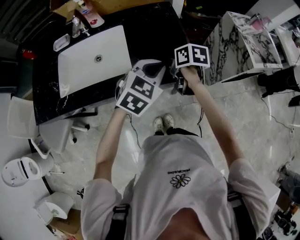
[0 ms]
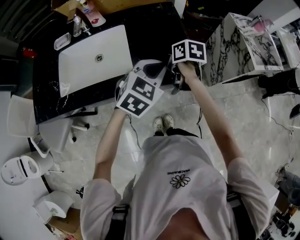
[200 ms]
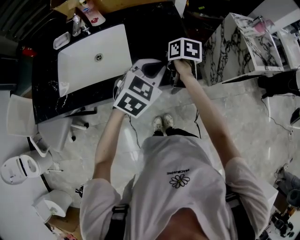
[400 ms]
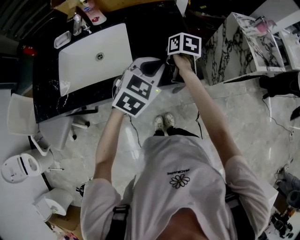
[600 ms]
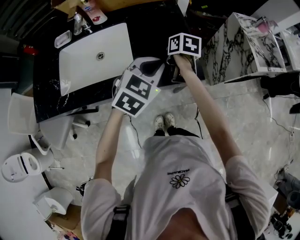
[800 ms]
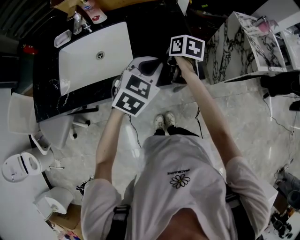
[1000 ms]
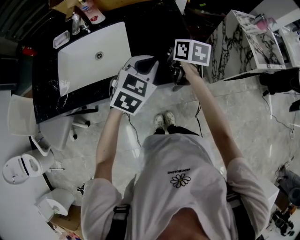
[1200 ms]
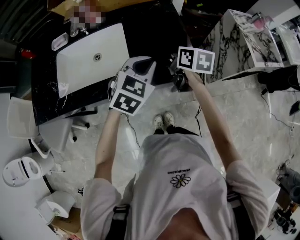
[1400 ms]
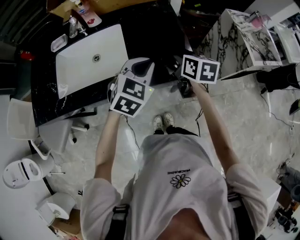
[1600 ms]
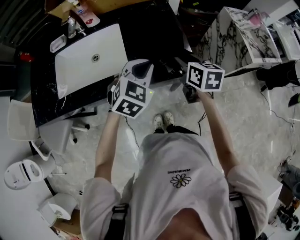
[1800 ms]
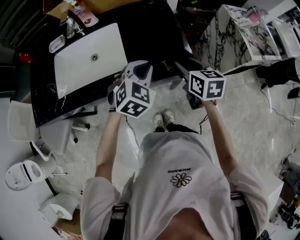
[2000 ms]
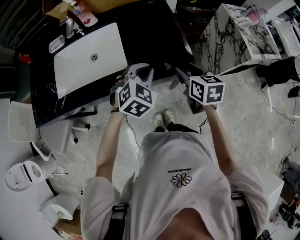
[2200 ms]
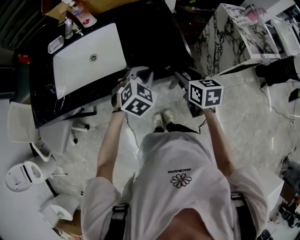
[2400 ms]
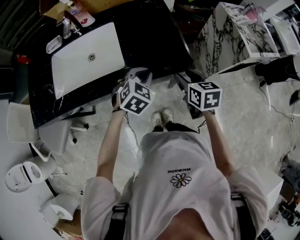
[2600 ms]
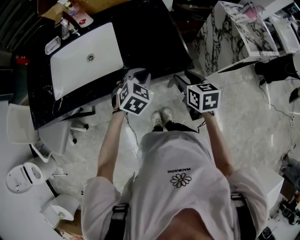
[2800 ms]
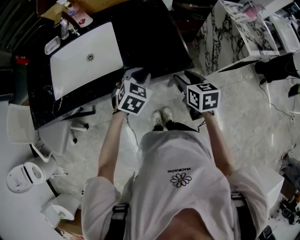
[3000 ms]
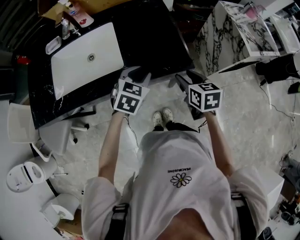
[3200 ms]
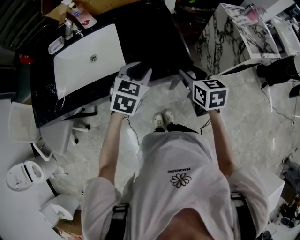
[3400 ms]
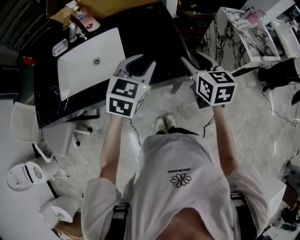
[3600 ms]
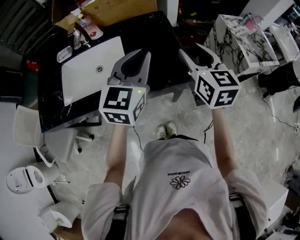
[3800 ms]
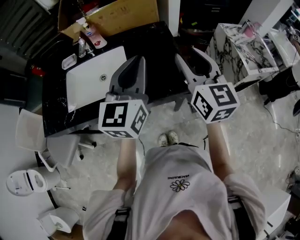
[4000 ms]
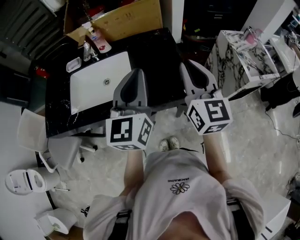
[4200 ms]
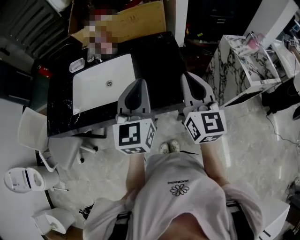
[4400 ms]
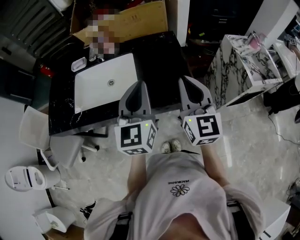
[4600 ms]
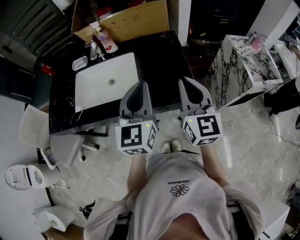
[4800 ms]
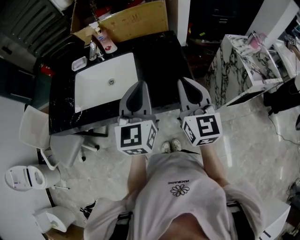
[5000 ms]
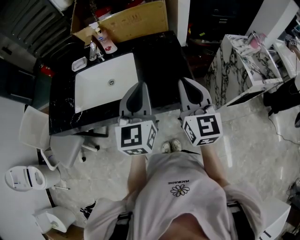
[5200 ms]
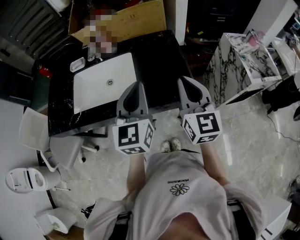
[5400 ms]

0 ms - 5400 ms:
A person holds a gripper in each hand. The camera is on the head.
0 ms - 1400 ms: The right gripper ends up approximately 5 cm from where it was.
1400 ms - 2800 ms: The left gripper heads downward, covering some 10 cm. Meanwhile the right gripper moves backward and to the right, about 15 cm.
2800 ms - 4000 ms: The grippers both shift upward by approximately 25 cm. The left gripper tips its fingers upward by about 50 degrees, and opens, then closes again. Meanwhile the right gripper tilts its fingers roughly 40 degrees upward.
4000 ms - 5400 ms: The right gripper moves some 5 cm, and closes, while the left gripper ends up about 5 cm from where it was.

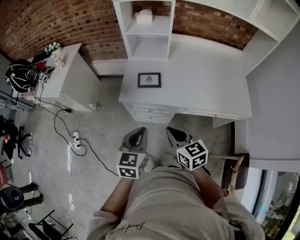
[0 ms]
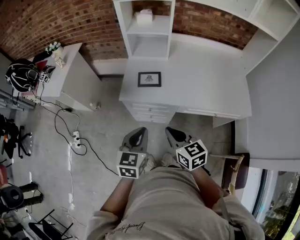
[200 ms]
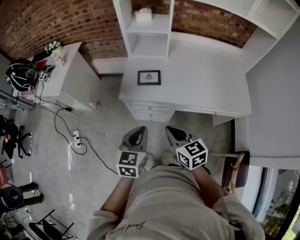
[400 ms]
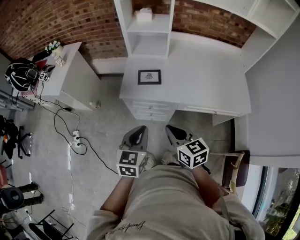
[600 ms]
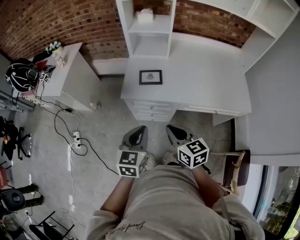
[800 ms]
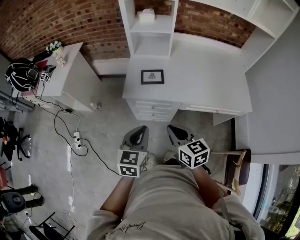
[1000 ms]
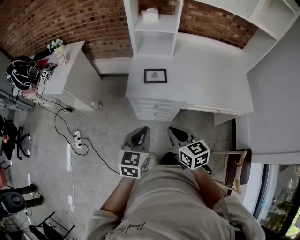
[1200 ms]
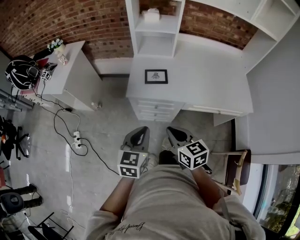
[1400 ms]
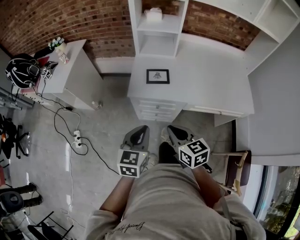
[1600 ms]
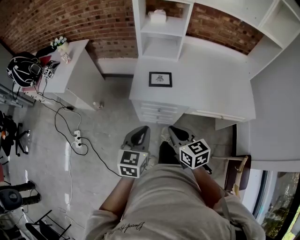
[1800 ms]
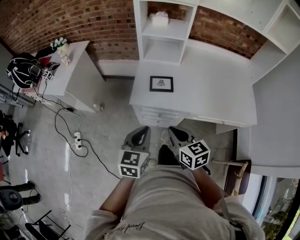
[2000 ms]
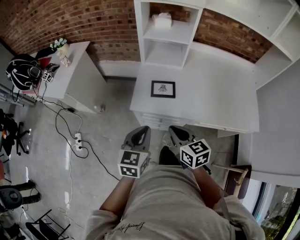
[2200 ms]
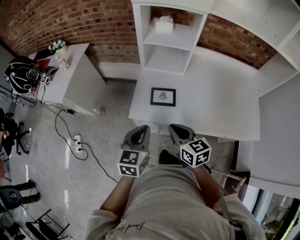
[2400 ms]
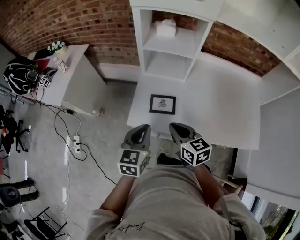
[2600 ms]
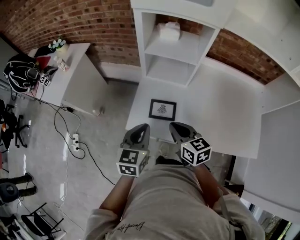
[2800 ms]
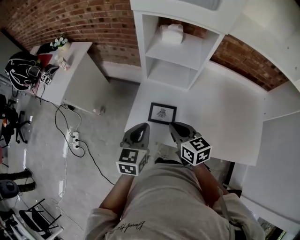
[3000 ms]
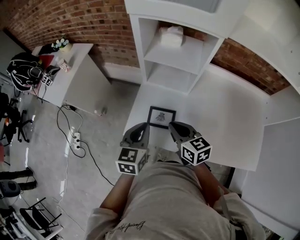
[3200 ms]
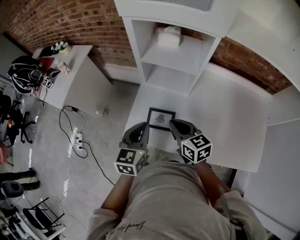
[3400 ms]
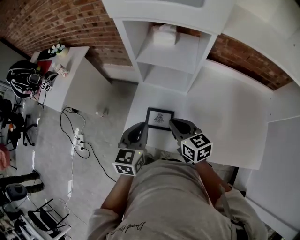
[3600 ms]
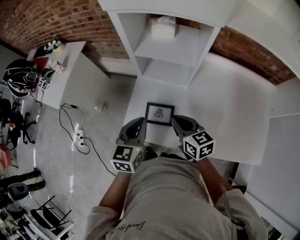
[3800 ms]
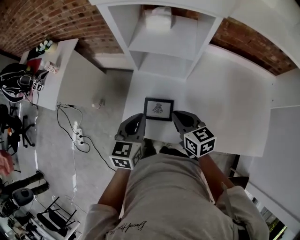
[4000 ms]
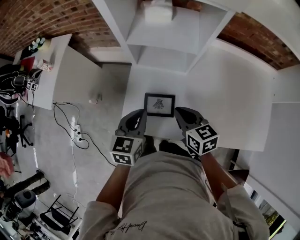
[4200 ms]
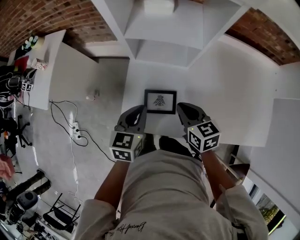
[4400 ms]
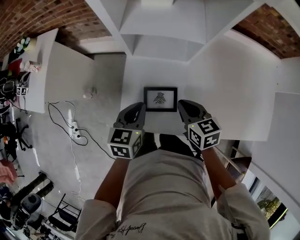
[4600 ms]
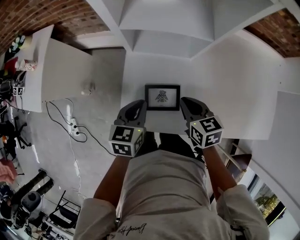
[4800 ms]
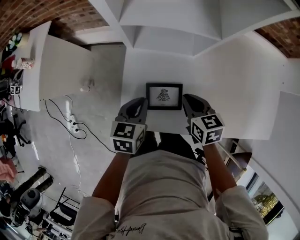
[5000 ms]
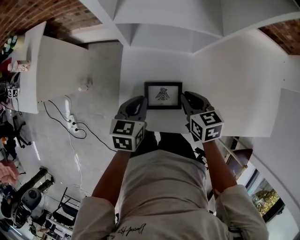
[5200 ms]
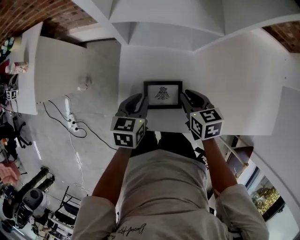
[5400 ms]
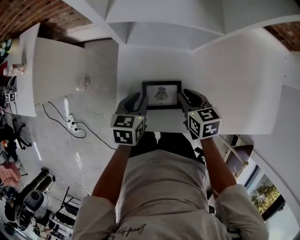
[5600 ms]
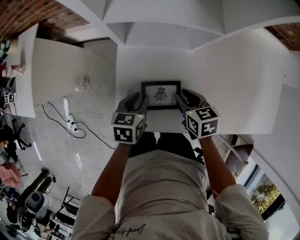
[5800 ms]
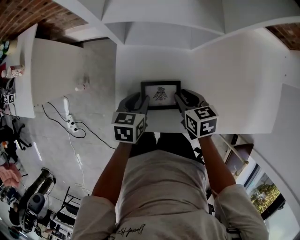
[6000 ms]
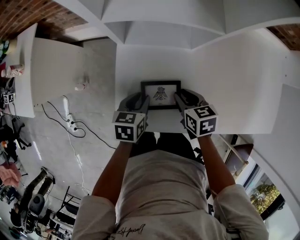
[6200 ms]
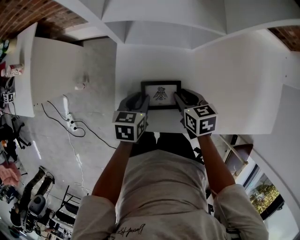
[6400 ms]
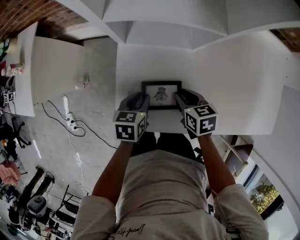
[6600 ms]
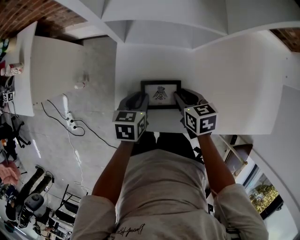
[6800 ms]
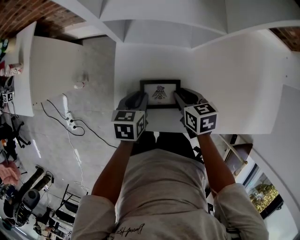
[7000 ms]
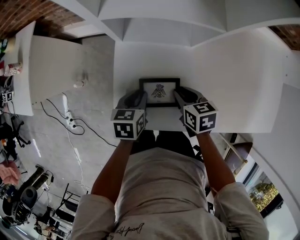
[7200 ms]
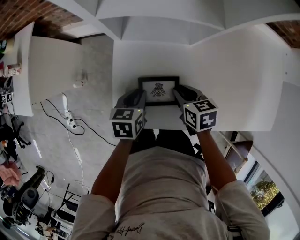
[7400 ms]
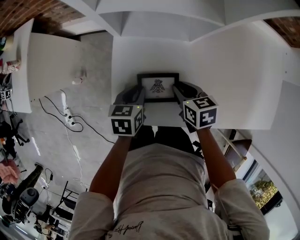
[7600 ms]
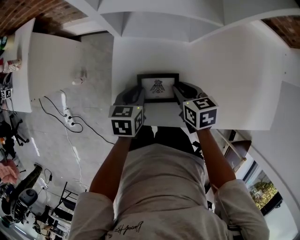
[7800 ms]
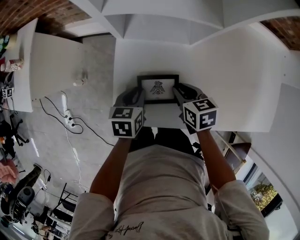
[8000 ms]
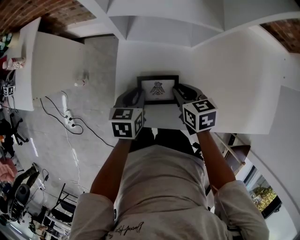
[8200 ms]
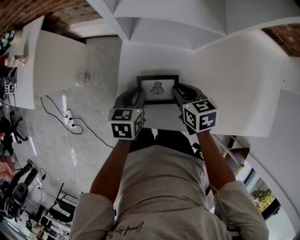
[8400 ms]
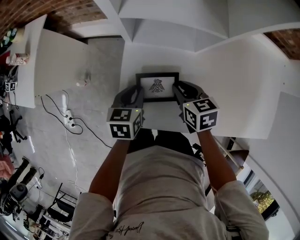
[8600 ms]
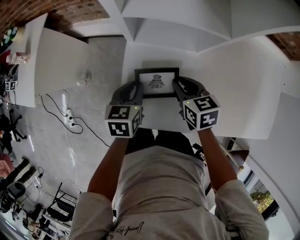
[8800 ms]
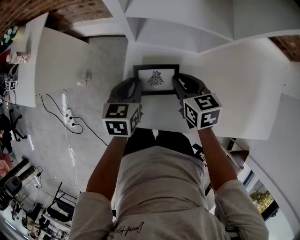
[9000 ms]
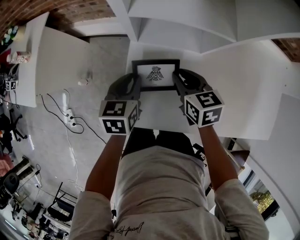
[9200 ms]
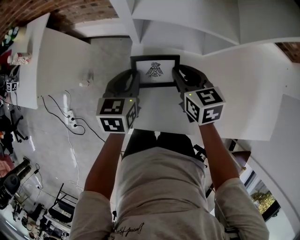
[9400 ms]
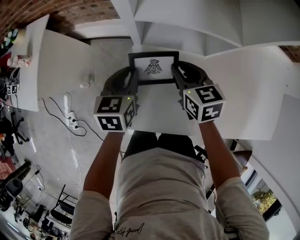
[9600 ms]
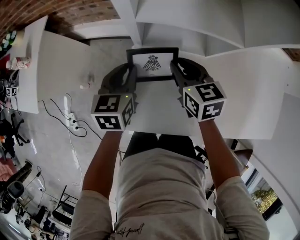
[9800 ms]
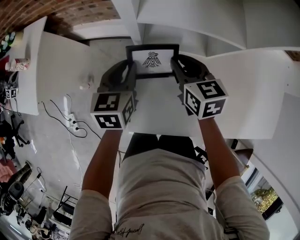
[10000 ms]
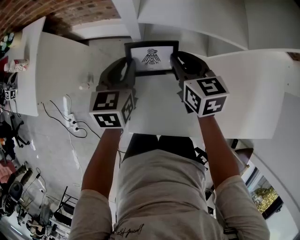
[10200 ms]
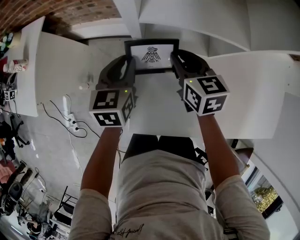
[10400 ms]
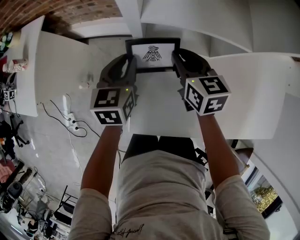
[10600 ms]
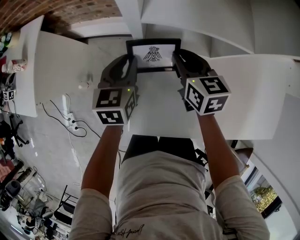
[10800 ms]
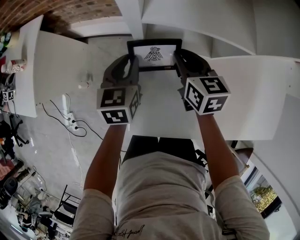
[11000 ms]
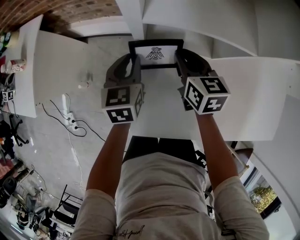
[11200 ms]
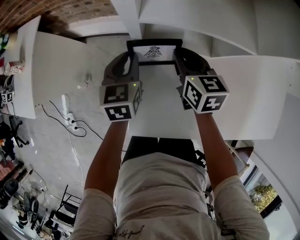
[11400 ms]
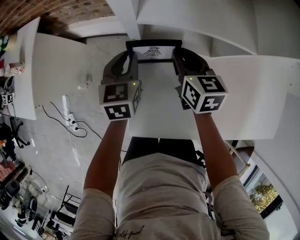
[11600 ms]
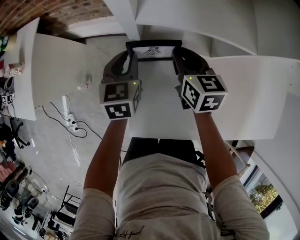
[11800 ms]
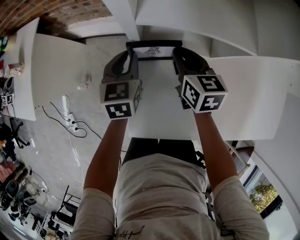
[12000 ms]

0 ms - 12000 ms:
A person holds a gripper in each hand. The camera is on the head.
0 ms - 1600 ms: The two grippers go approximately 5 cm to the left.
1600 ms - 3000 ms: Both grippers move forward, about 30 cm.
3000 ms - 4400 ms: The left gripper moves forward and downward, about 15 cm, while the right gripper is displaced downward, forward and to the right by some 10 cm.
4400 ms - 6000 ms: Both grippers travel together downward, approximately 15 cm. The left gripper swivels roughly 20 degrees, and opens.
6000 ms - 7600 ms: The two grippers keep their place.
7600 ms - 9000 ms: The right gripper is displaced upward and forward by roughly 10 cm. Meanwhile the left gripper travels upward by some 5 cm.
9000 ms - 10400 ms: Both grippers move forward, approximately 10 cm.
10400 ms - 12000 ms: The left gripper shifts by roughly 5 cm.

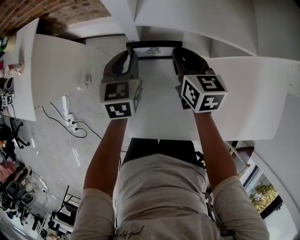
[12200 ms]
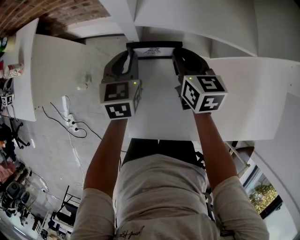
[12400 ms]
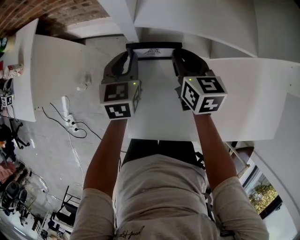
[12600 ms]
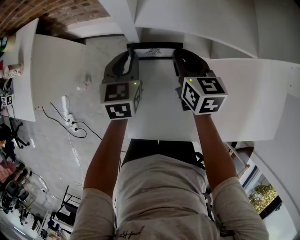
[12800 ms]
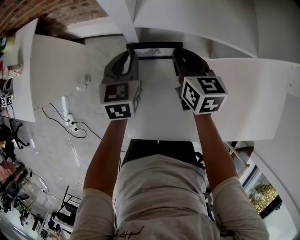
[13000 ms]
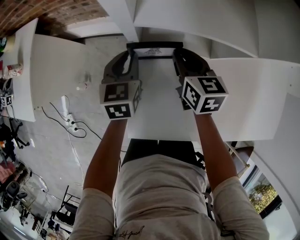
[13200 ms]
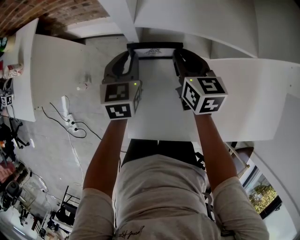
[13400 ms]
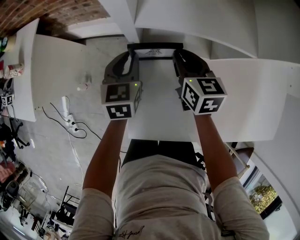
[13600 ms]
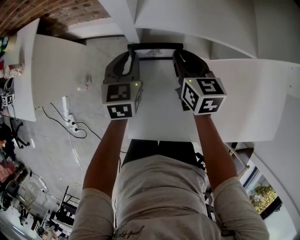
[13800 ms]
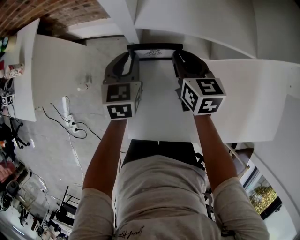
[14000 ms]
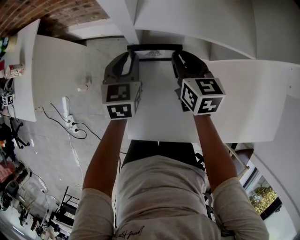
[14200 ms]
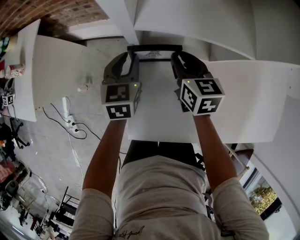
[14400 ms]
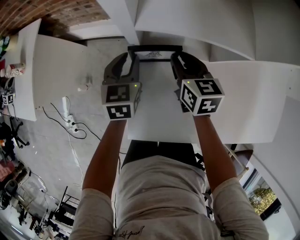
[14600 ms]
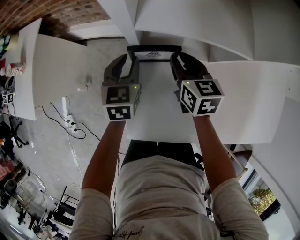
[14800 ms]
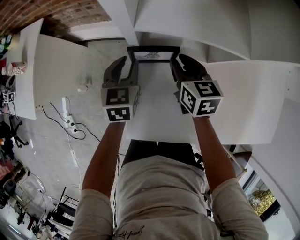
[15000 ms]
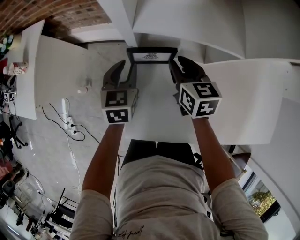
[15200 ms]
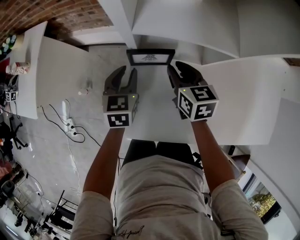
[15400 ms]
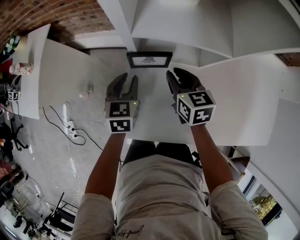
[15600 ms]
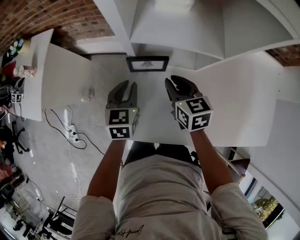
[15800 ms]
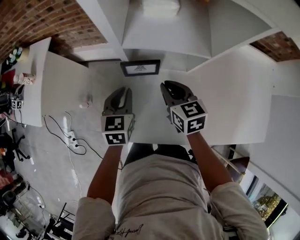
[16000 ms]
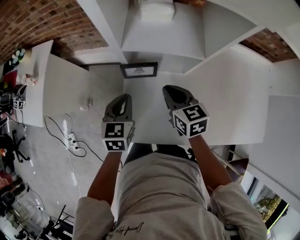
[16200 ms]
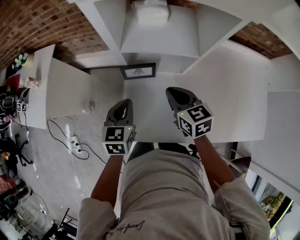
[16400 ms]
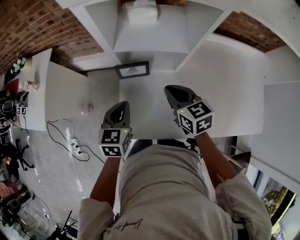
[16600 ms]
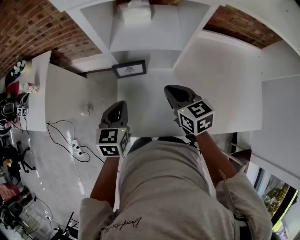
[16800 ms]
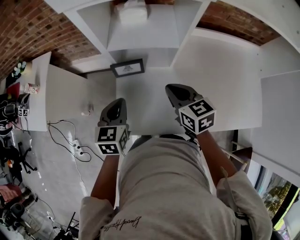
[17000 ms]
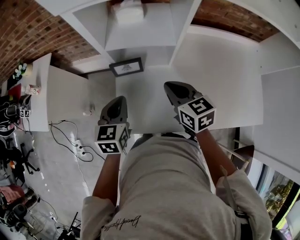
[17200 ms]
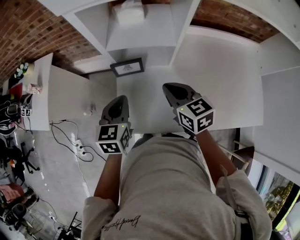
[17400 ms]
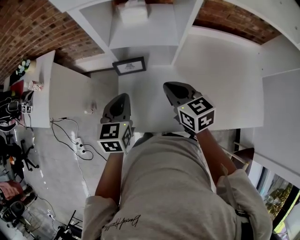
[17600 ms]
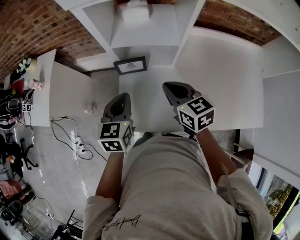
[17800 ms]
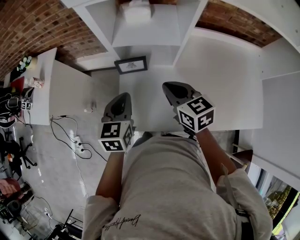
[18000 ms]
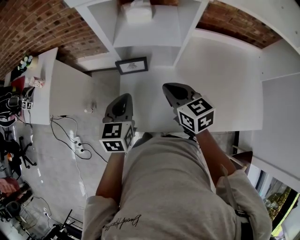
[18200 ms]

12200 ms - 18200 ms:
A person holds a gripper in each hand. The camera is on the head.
12200 ms - 13800 ms: Neither gripper changes place.
13800 ms - 15200 ms: The grippers move only a little.
15200 ms - 16600 ms: Both grippers move backward and upward, some 15 cm. The left gripper closes.
16600 ms - 18200 ms: The left gripper heads upward, covering roughly 5 cm. Meanwhile the right gripper moves roughly 5 cm.
